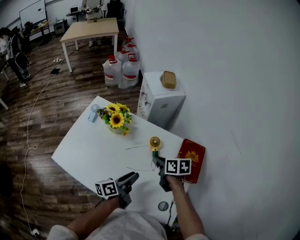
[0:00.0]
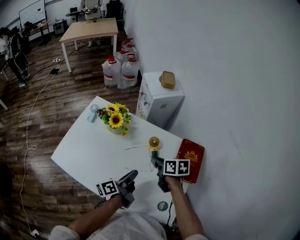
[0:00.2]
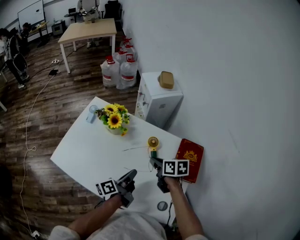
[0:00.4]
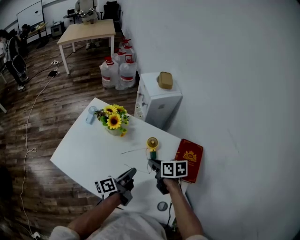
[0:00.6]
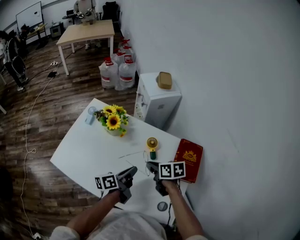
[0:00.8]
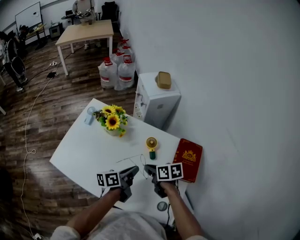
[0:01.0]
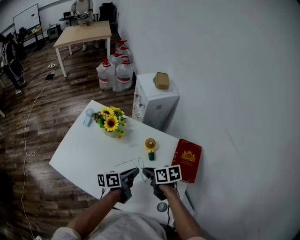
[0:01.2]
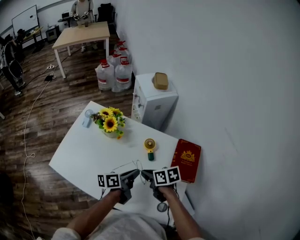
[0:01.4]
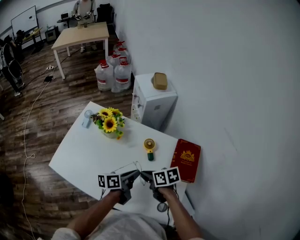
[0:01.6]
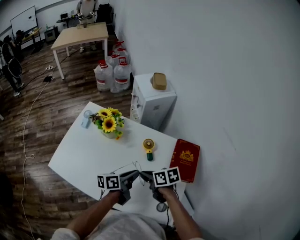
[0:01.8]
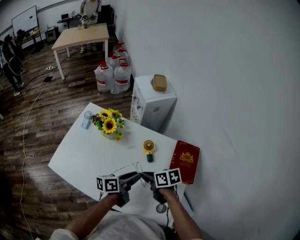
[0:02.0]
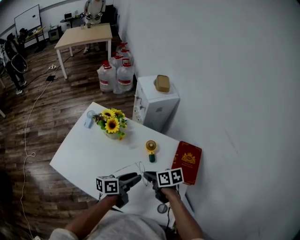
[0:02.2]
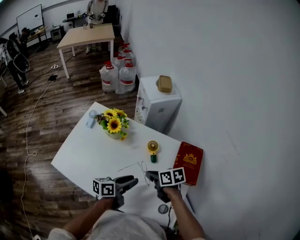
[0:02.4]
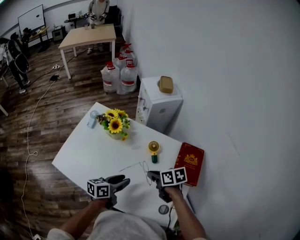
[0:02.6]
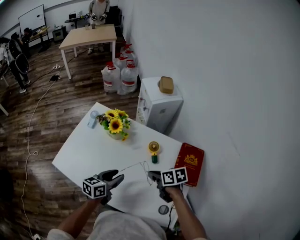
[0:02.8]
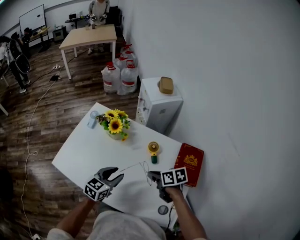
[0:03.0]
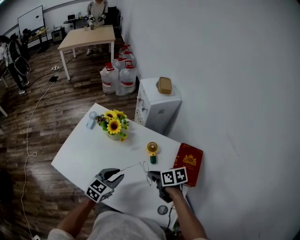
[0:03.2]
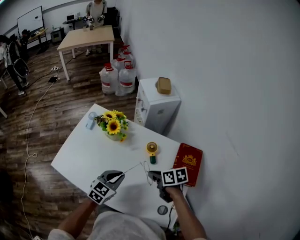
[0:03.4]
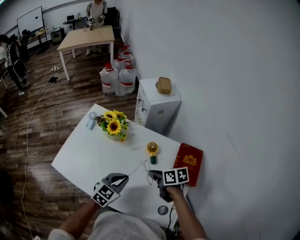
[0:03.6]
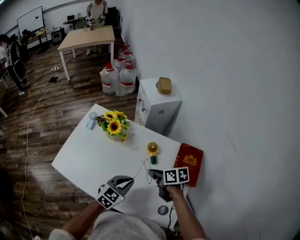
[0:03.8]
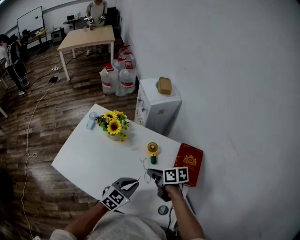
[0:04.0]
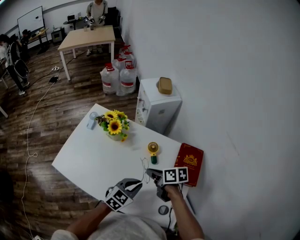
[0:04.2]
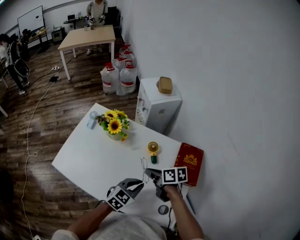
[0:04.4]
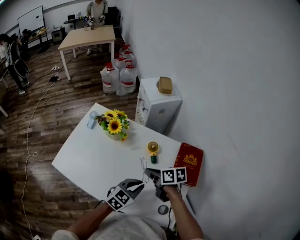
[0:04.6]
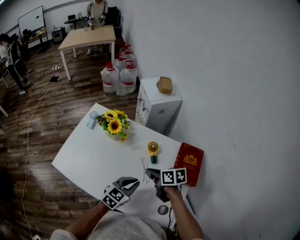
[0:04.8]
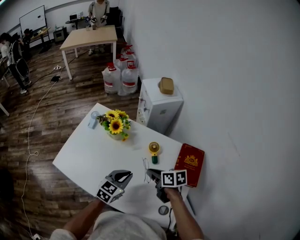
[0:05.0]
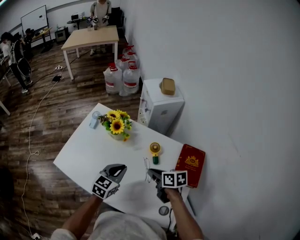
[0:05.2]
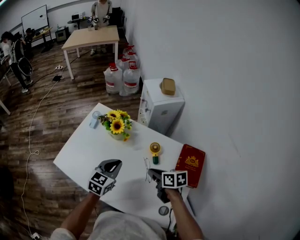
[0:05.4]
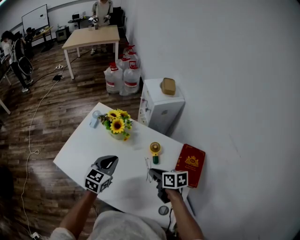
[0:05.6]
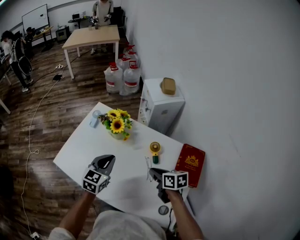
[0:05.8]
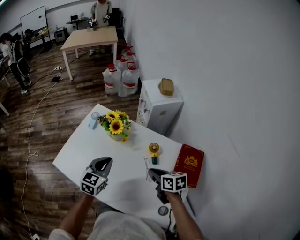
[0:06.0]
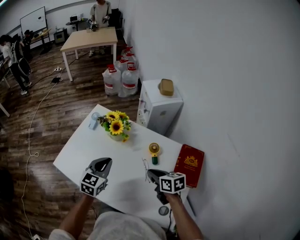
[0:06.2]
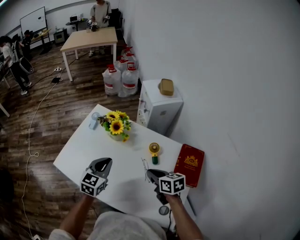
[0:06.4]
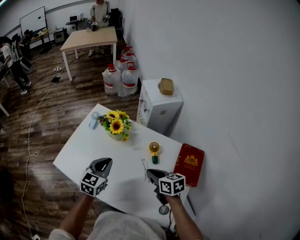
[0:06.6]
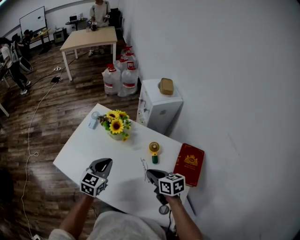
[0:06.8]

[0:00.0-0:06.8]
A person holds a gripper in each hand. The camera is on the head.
0:00.0 to 0:01.4: The right gripper shifts some 5 cm backward. The left gripper closes.
0:01.4 to 0:02.8: The left gripper shifts approximately 10 cm to the left, changes its angle by roughly 30 degrees, and opens.
0:02.8 to 0:04.0: The left gripper is displaced to the right by about 10 cm, changes its angle by some 40 degrees, and closes.
0:04.0 to 0:05.4: The left gripper shifts approximately 15 cm to the left and forward, and rotates roughly 20 degrees.
0:05.4 to 0:06.8: There are only small adjustments of the grippers.

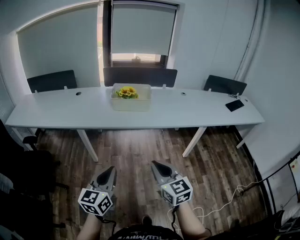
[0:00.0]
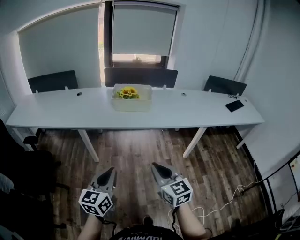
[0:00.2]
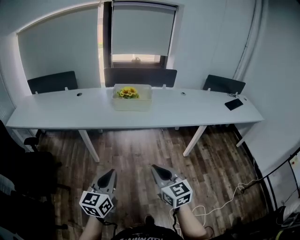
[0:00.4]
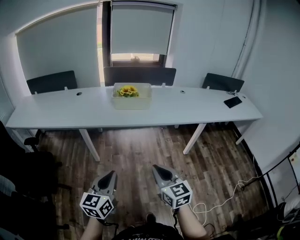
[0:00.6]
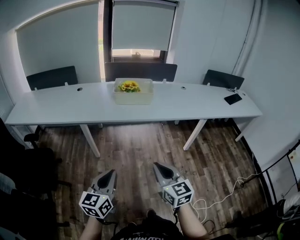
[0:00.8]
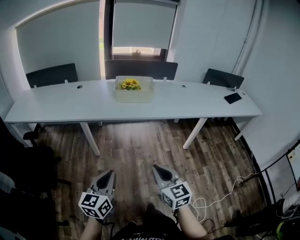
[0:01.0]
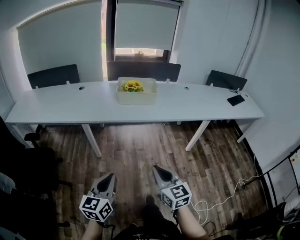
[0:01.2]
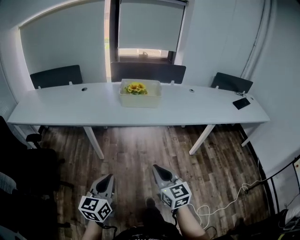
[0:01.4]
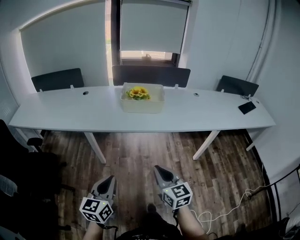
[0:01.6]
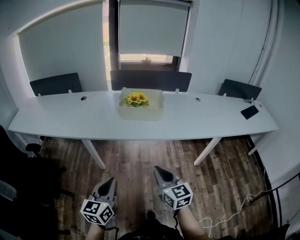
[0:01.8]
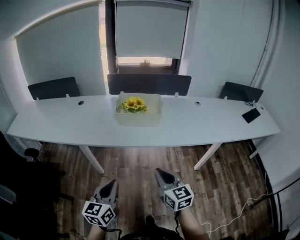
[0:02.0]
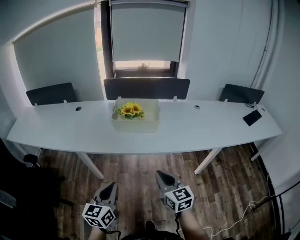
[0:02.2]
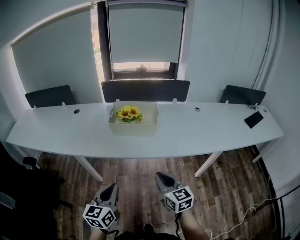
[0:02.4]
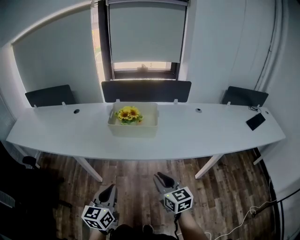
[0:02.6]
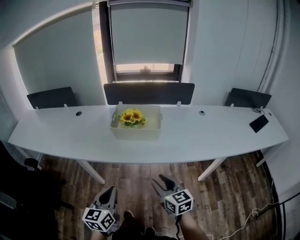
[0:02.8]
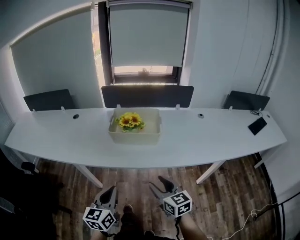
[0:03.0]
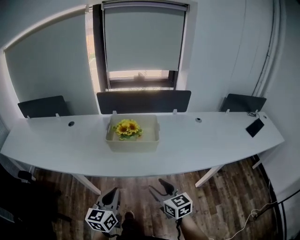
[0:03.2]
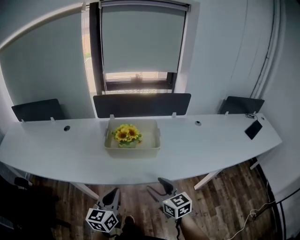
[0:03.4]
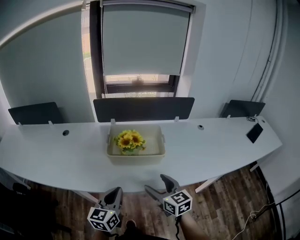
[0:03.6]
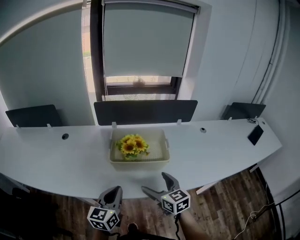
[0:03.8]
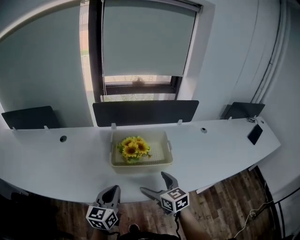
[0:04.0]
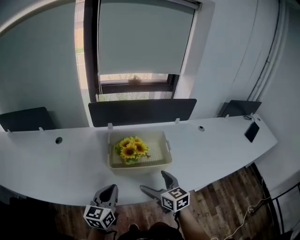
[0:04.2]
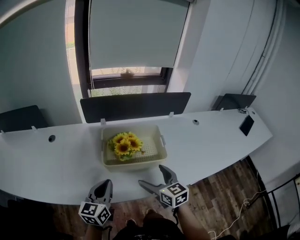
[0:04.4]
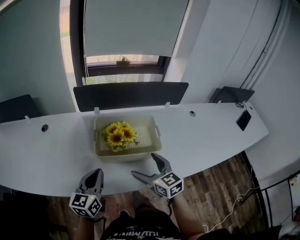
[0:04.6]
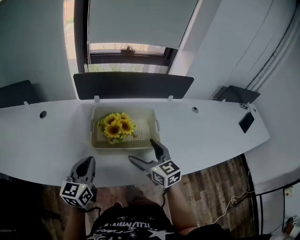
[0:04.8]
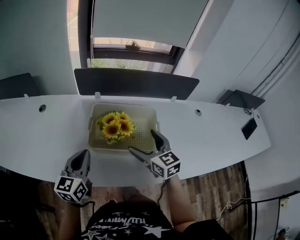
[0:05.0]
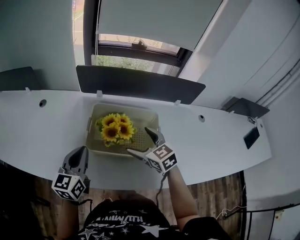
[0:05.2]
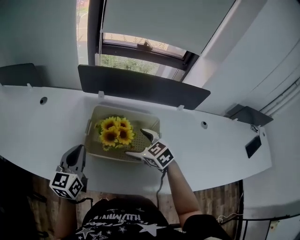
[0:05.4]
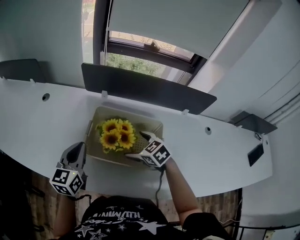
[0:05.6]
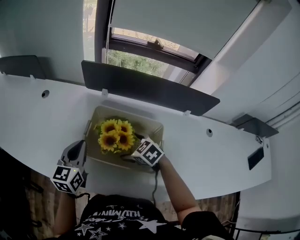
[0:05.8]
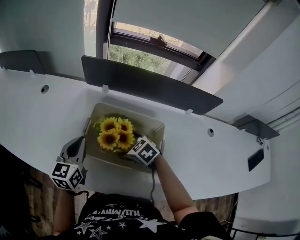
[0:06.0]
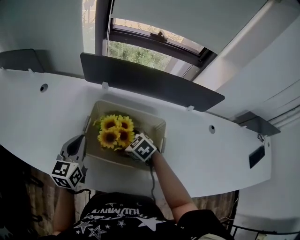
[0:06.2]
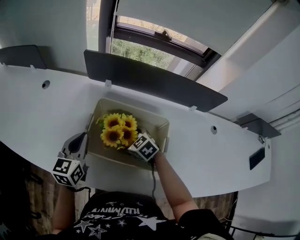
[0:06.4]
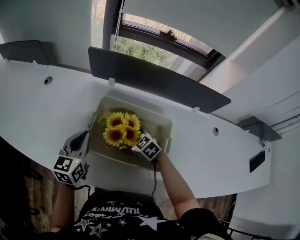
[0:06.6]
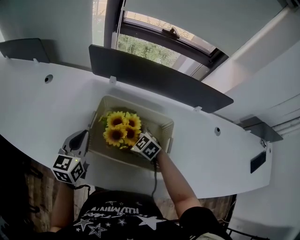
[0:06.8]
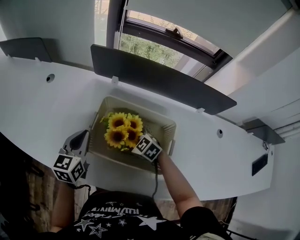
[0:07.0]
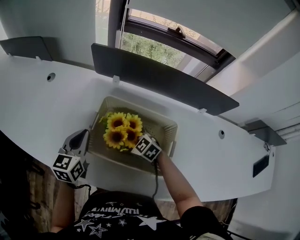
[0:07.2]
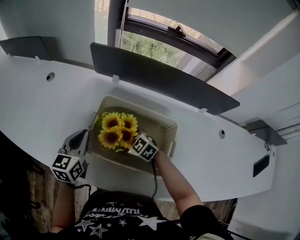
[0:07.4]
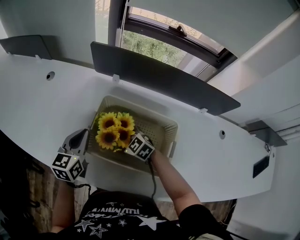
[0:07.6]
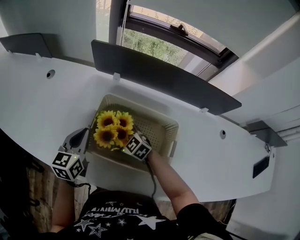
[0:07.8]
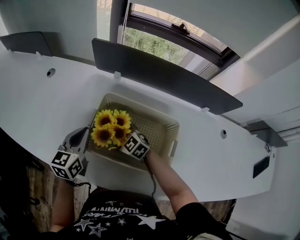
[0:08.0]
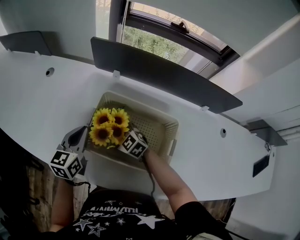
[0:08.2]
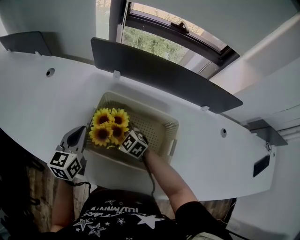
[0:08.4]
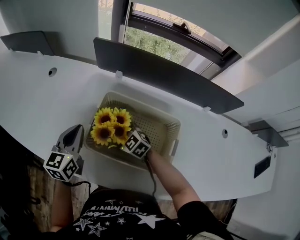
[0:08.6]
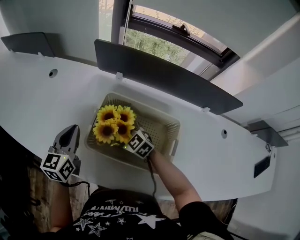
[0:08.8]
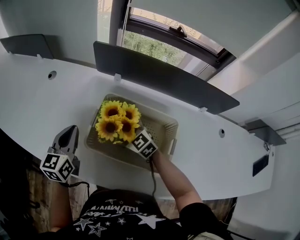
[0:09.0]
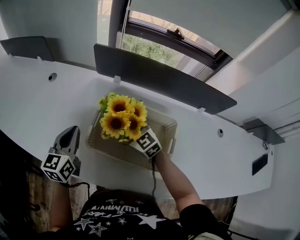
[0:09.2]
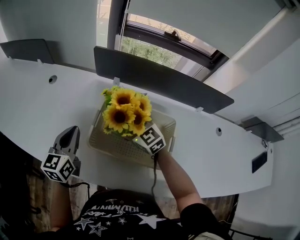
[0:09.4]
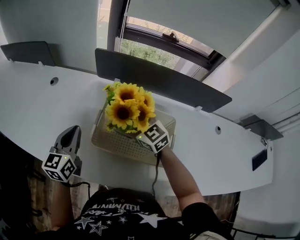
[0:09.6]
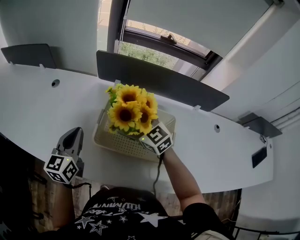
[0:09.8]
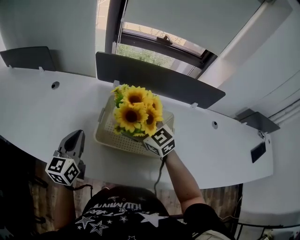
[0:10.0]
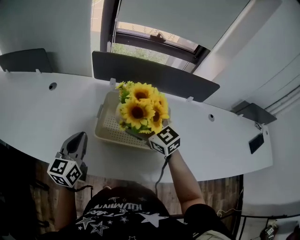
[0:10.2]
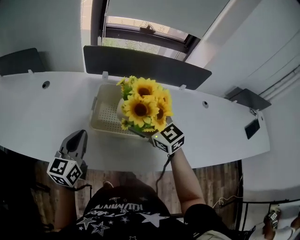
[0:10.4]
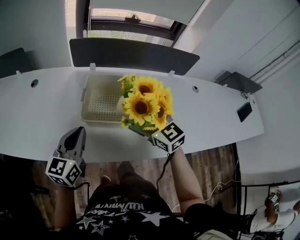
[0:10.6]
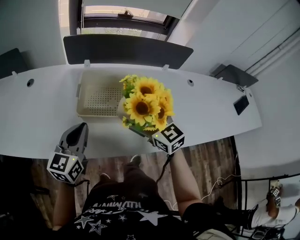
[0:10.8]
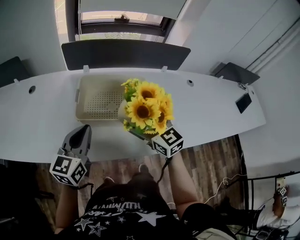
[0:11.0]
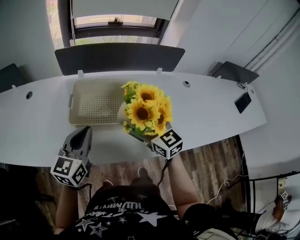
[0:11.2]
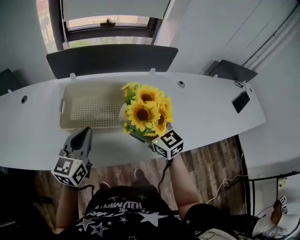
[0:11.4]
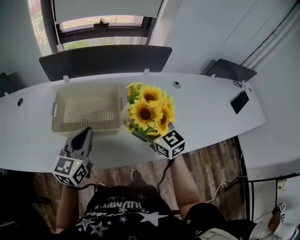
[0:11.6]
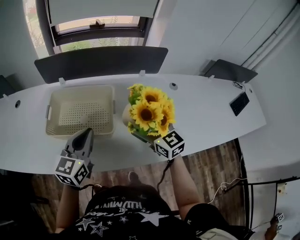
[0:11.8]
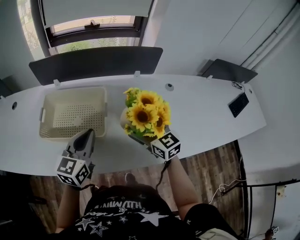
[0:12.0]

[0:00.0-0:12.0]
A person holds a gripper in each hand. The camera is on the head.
0:00.0 to 0:01.6: The left gripper goes roughly 5 cm to the left. The right gripper shifts approximately 10 cm forward and downward.
0:01.6 to 0:03.0: The two grippers go approximately 25 cm forward and to the right.
0:03.0 to 0:04.4: The grippers both shift forward by some 25 cm. The right gripper opens.
0:04.4 to 0:06.0: The right gripper ends up some 20 cm from where it was, and tips its fingers downward by some 40 degrees, while the left gripper changes place by roughly 15 cm, and turns by approximately 20 degrees.
0:06.0 to 0:07.6: The left gripper moves some 5 cm; the right gripper travels to the left by some 5 cm, and rotates roughly 20 degrees.
0:07.6 to 0:09.0: The left gripper changes place by roughly 5 cm. The right gripper moves upward, roughly 5 cm.
0:09.0 to 0:10.4: The right gripper goes roughly 20 cm upward and backward, and rotates some 30 degrees. Meanwhile the left gripper moves backward and upward, about 10 cm.
0:10.4 to 0:12.0: Both grippers travel together to the right, about 30 cm.

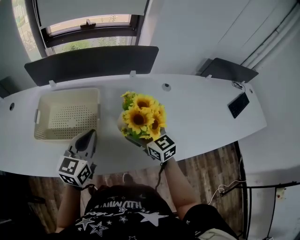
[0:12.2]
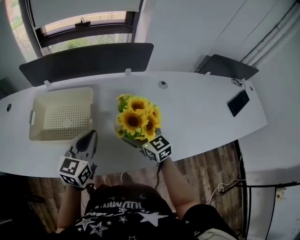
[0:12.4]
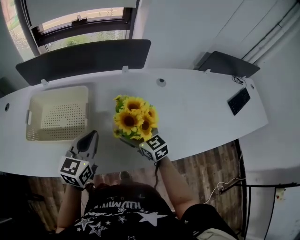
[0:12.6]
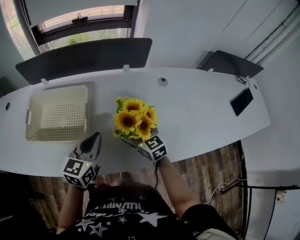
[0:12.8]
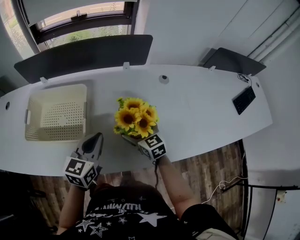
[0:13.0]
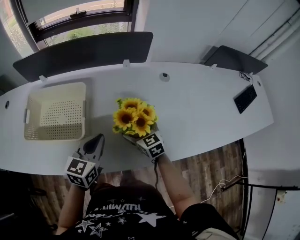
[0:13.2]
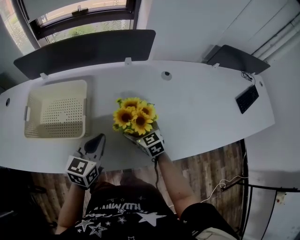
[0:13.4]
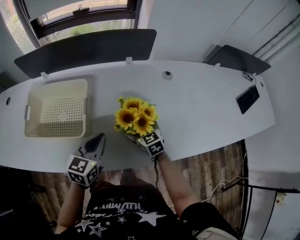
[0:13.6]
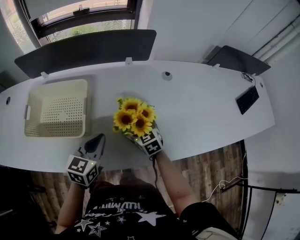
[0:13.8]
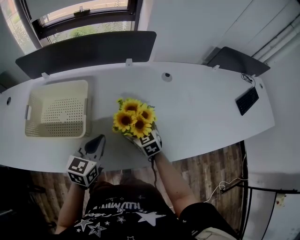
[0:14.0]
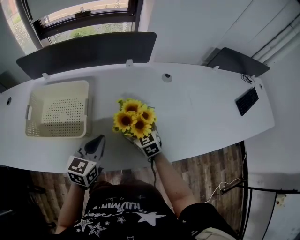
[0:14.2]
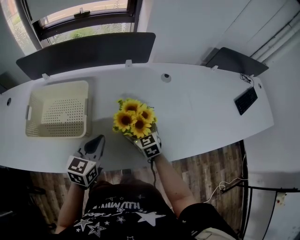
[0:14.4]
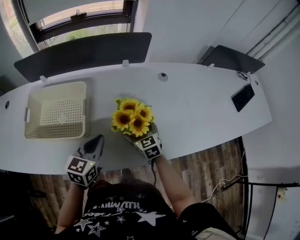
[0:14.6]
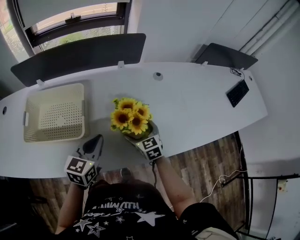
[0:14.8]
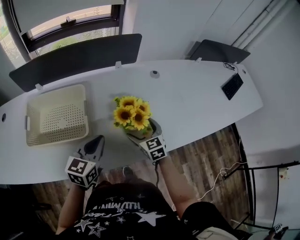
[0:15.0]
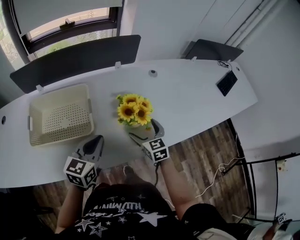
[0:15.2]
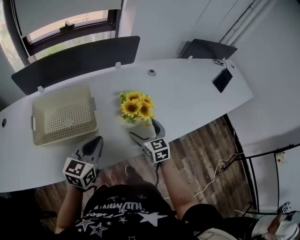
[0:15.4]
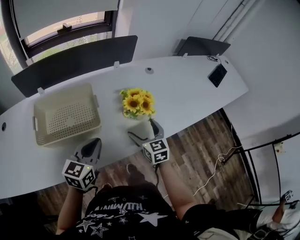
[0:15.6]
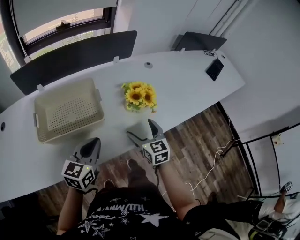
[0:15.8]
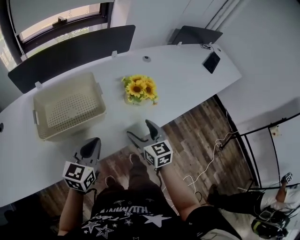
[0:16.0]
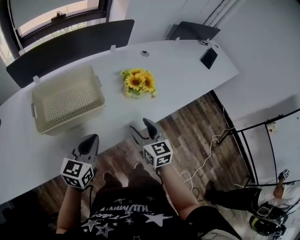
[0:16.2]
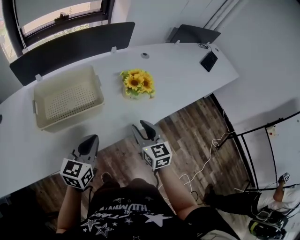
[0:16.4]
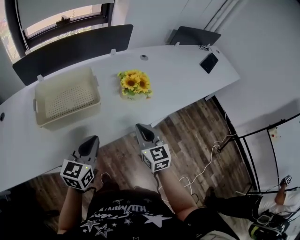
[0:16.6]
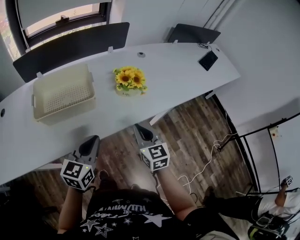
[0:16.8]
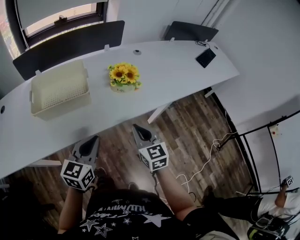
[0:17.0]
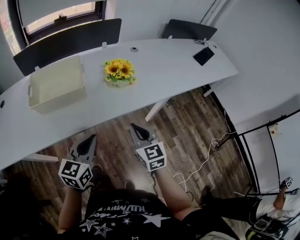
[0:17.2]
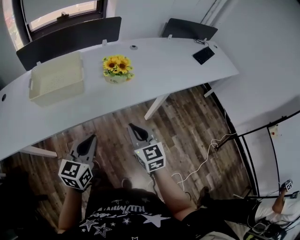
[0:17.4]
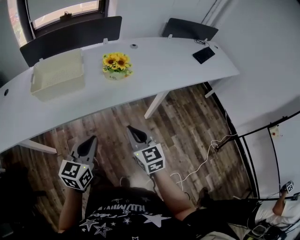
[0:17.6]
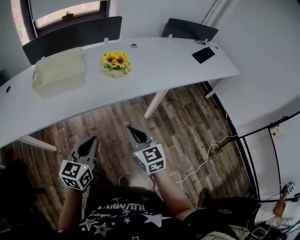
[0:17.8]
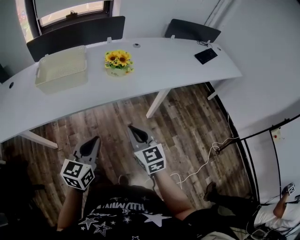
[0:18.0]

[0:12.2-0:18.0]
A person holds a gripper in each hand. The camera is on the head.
0:12.2 to 0:13.6: The left gripper heads downward and to the right, covering some 10 cm, while the right gripper goes roughly 15 cm downward.
0:13.6 to 0:15.0: The right gripper moves roughly 5 cm.
0:15.0 to 0:16.6: The left gripper shifts approximately 20 cm backward and to the left. The right gripper moves backward and upward, roughly 25 cm, turns by roughly 20 degrees, and closes up.
0:16.6 to 0:18.0: The two grippers go about 25 cm backward and to the right.
